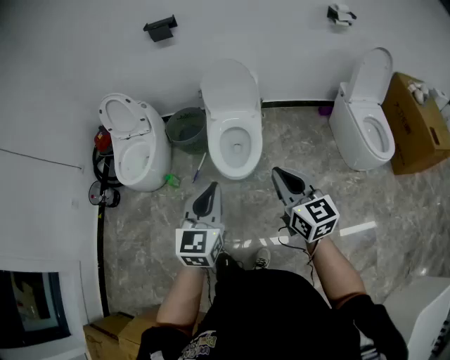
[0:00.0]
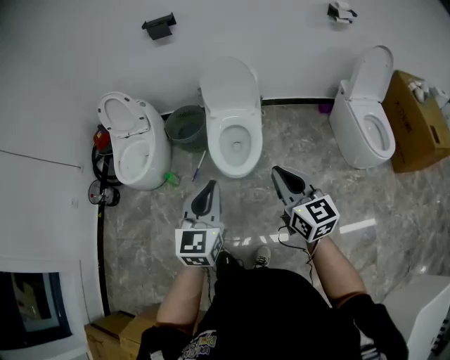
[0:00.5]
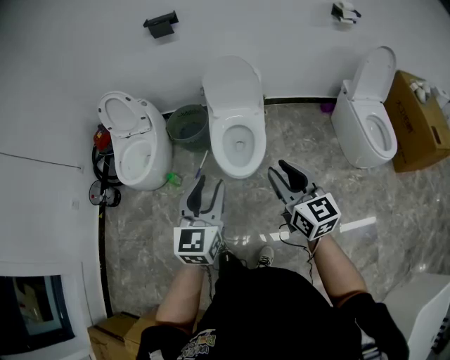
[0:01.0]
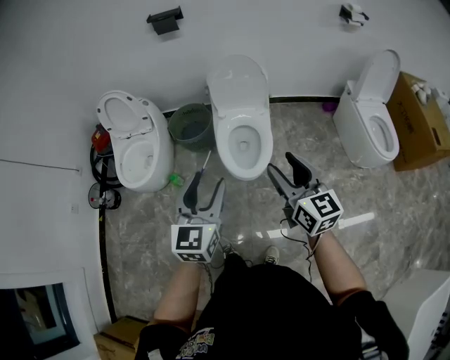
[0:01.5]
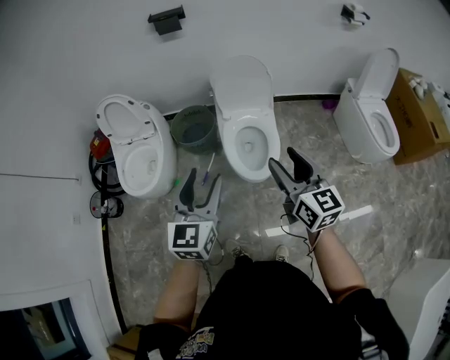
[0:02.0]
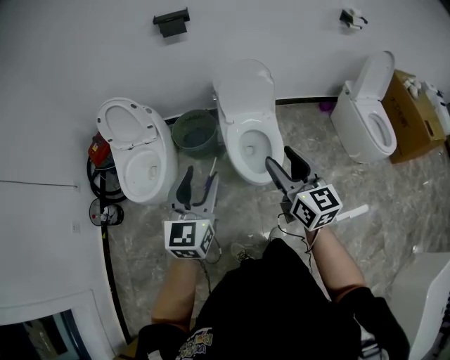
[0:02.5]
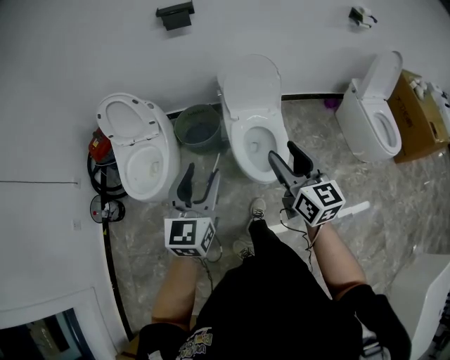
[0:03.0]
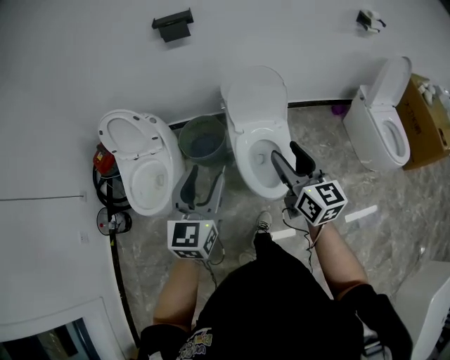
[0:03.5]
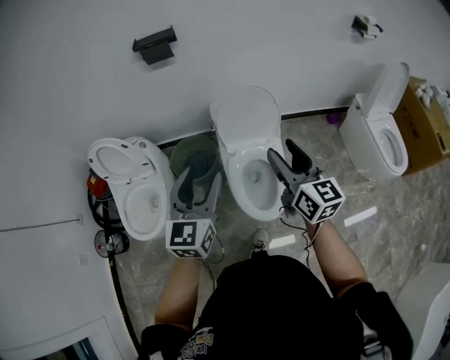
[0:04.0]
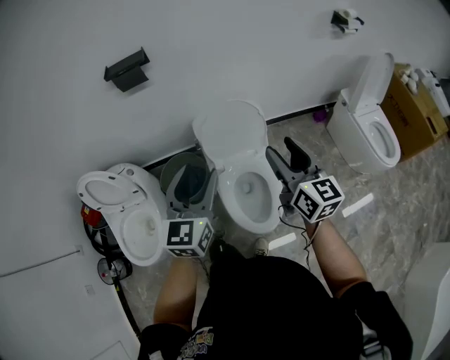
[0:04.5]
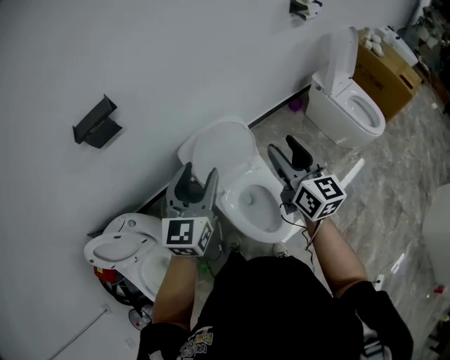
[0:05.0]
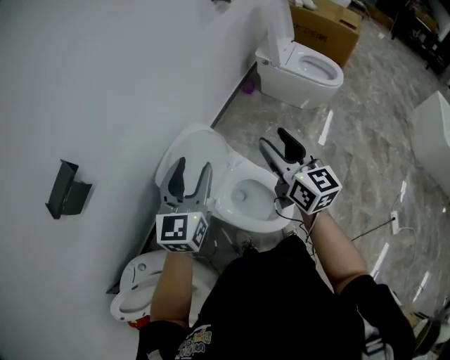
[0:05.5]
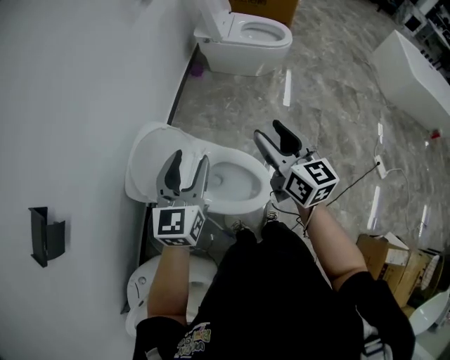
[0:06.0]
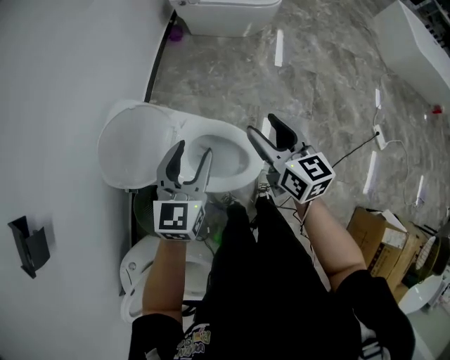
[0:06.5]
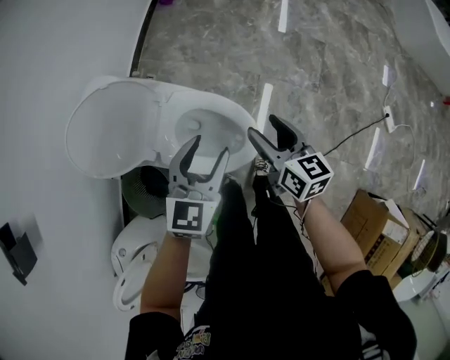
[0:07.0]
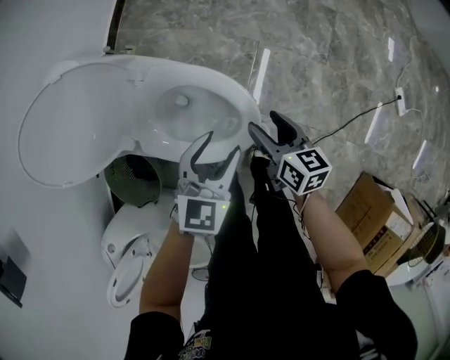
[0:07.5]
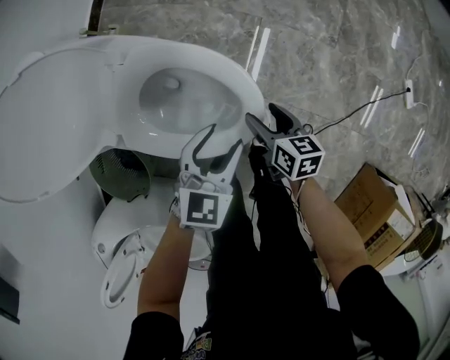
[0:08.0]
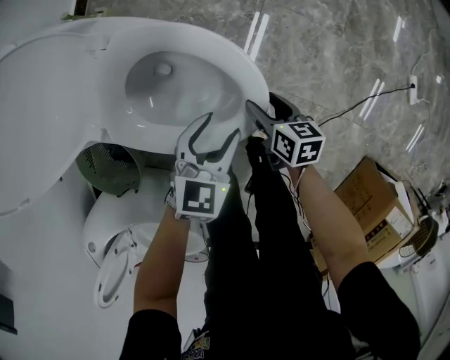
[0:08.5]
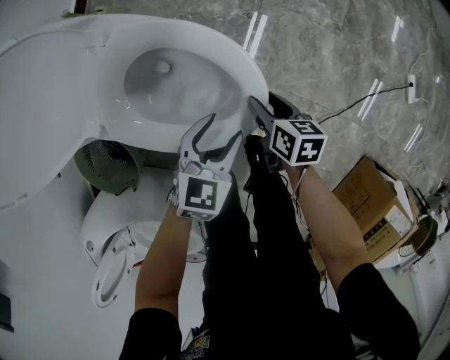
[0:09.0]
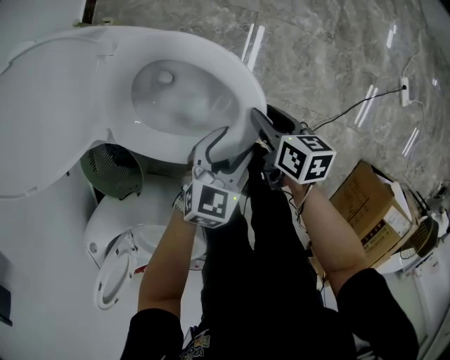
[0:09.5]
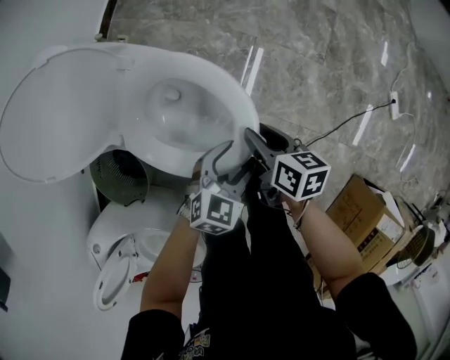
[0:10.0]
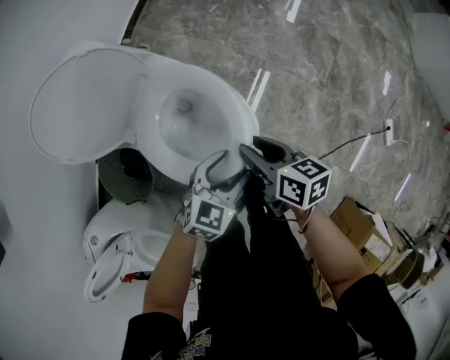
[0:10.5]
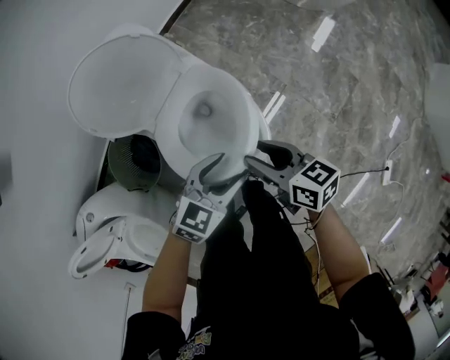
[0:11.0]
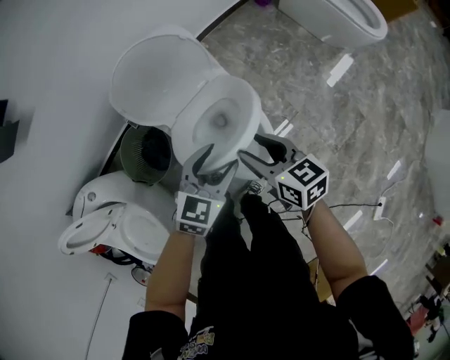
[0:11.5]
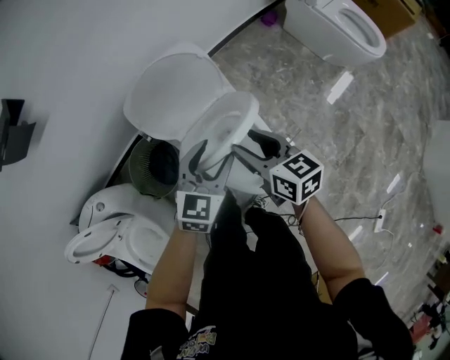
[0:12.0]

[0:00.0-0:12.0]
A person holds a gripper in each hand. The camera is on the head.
0:00.0 to 0:02.0: The grippers both shift to the left and forward by about 20 cm. The right gripper opens up; the left gripper opens.
0:02.0 to 0:04.0: Both grippers travel together forward, approximately 25 cm.
0:04.0 to 0:06.0: The right gripper ends up some 15 cm from where it was, and changes its angle by approximately 60 degrees. Meanwhile the left gripper shifts by about 30 cm, and changes its angle by roughly 60 degrees.
0:06.0 to 0:08.0: The left gripper travels downward and to the right by some 50 cm, and rotates some 40 degrees. The right gripper is displaced downward by roughly 60 cm, and points its fingers some 40 degrees further downward.
0:08.0 to 0:10.0: The left gripper moves backward, roughly 5 cm, and reaches about 5 cm downward, then returns; the right gripper moves upward, roughly 10 cm, and closes up.
0:10.0 to 0:12.0: The right gripper heads upward, covering some 25 cm, and swivels about 50 degrees, while the left gripper ends up approximately 35 cm from where it was, and changes its angle by roughly 50 degrees.

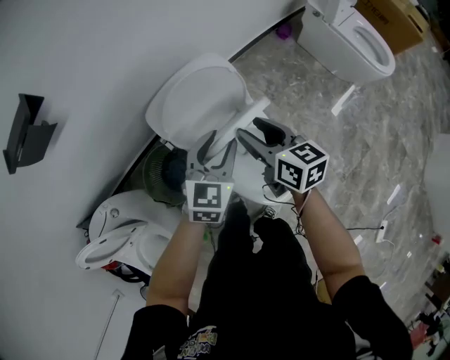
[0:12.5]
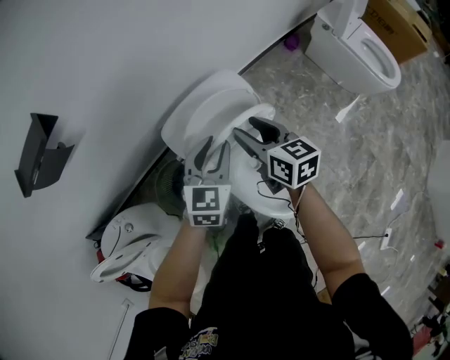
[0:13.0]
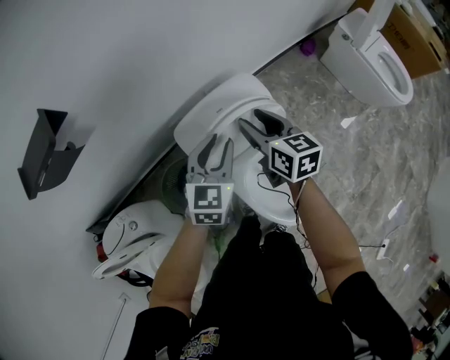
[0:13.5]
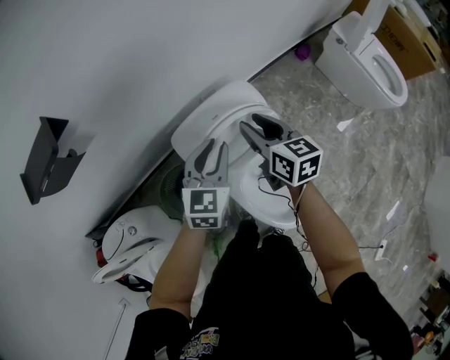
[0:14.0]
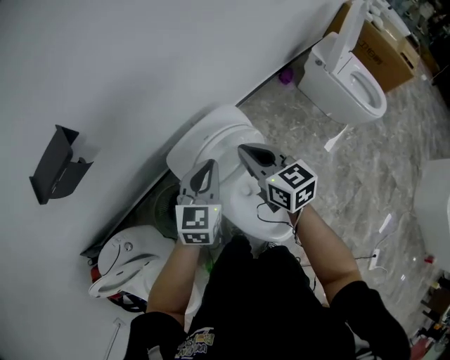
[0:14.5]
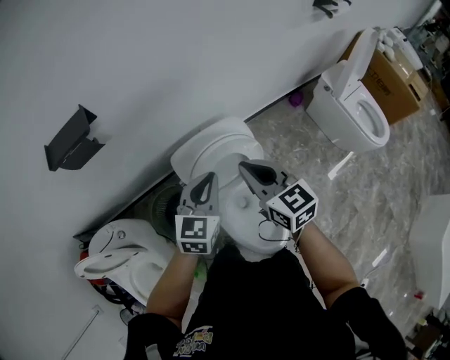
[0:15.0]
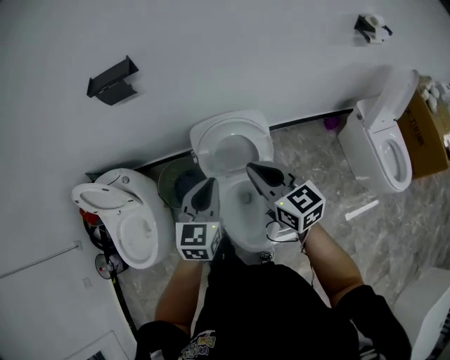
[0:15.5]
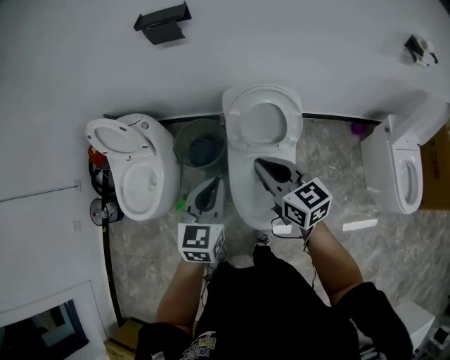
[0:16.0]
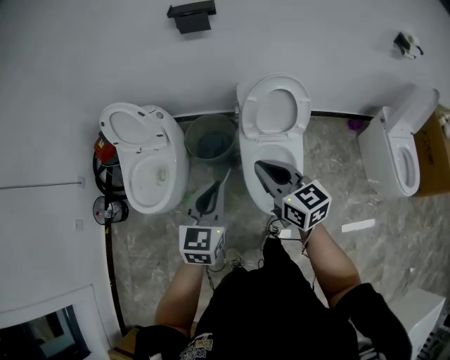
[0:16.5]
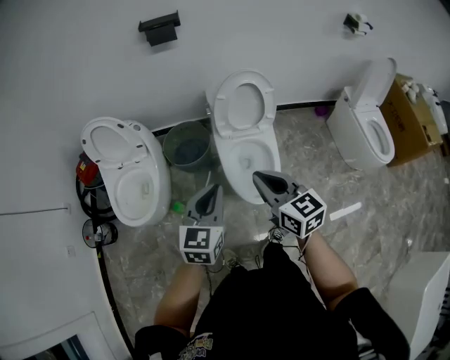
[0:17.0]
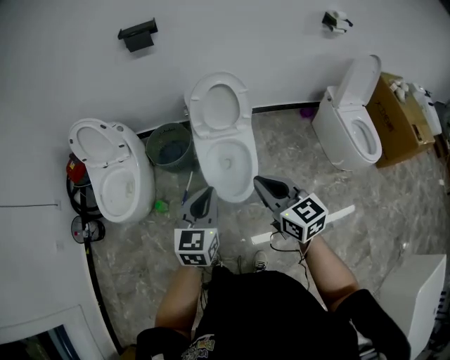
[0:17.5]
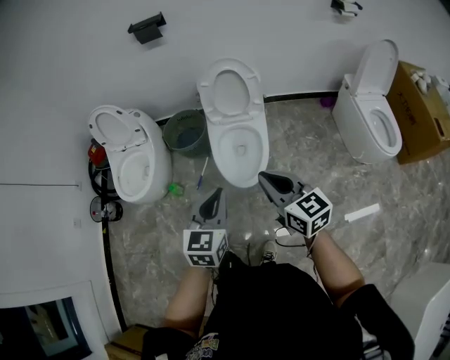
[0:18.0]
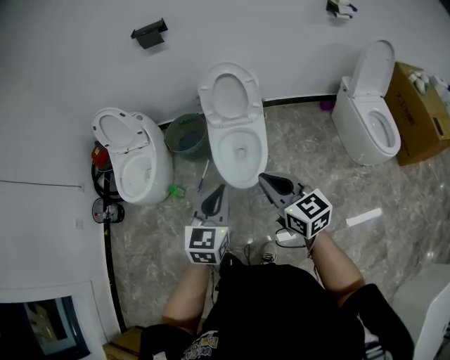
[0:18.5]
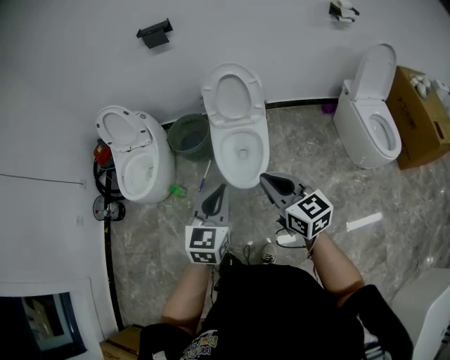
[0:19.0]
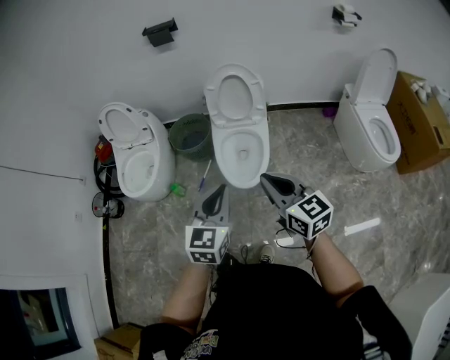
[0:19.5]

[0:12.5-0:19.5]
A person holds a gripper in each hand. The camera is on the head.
0:12.5 to 0:14.5: The right gripper moves forward, upward and to the left, roughly 15 cm, and closes its fingers. The left gripper goes some 15 cm forward, to the left and upward, and closes its fingers.
0:14.5 to 0:16.0: The left gripper changes place by about 30 cm, and swivels approximately 40 degrees; the right gripper changes place by roughly 25 cm, and changes its angle by roughly 40 degrees.
0:16.0 to 0:17.5: The grippers both shift backward by approximately 30 cm.
0:17.5 to 0:19.5: Both grippers travel together backward, some 15 cm.

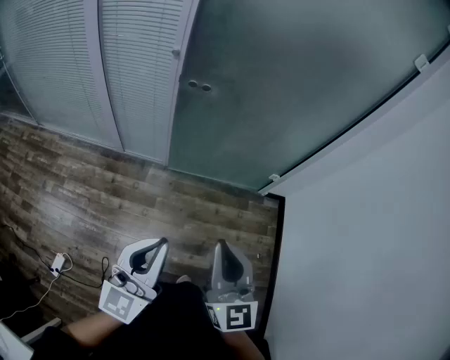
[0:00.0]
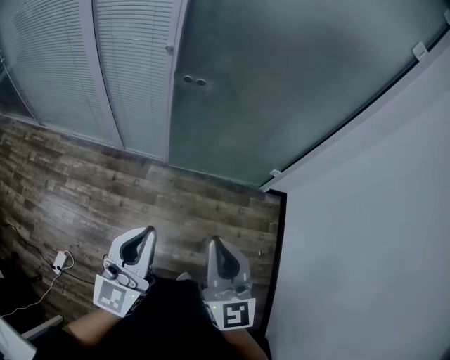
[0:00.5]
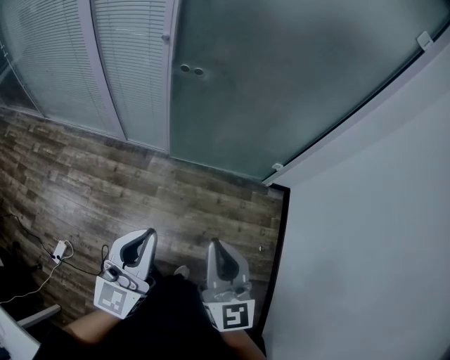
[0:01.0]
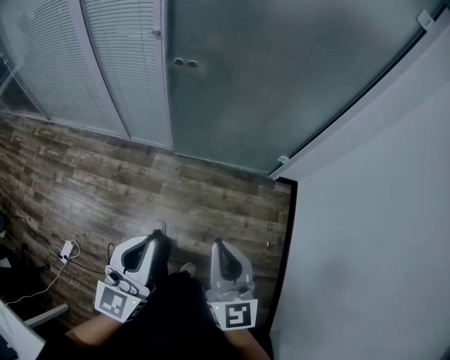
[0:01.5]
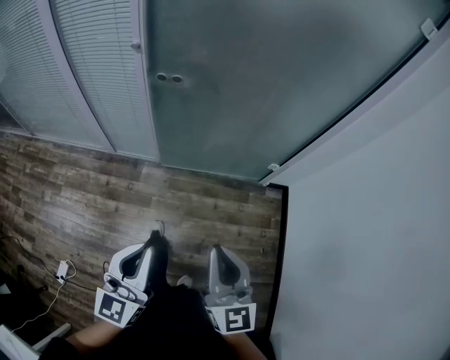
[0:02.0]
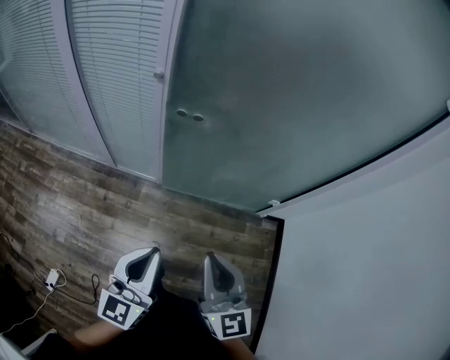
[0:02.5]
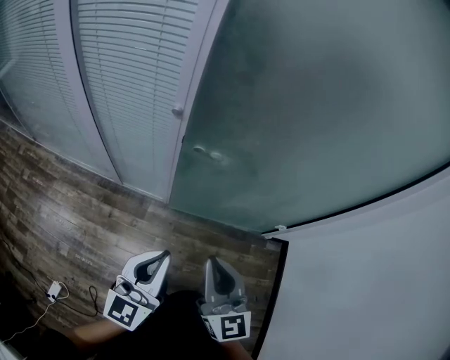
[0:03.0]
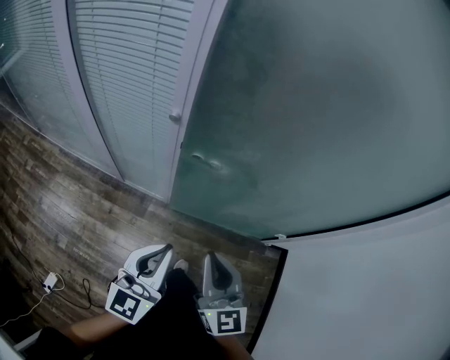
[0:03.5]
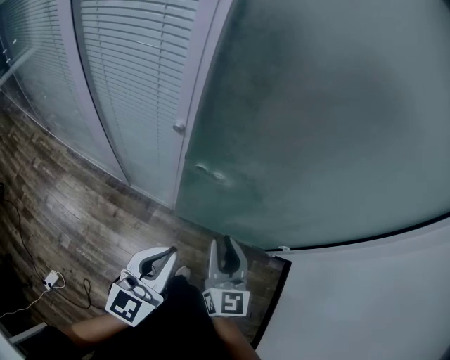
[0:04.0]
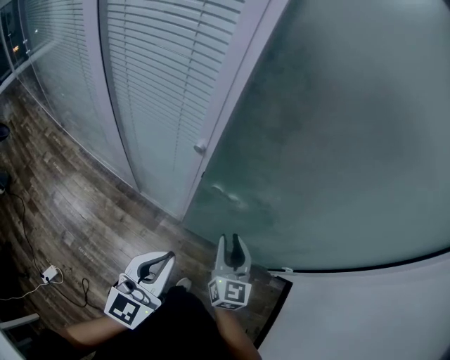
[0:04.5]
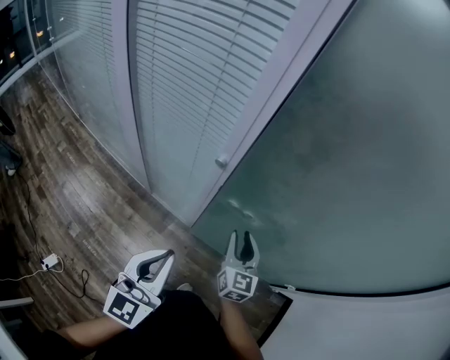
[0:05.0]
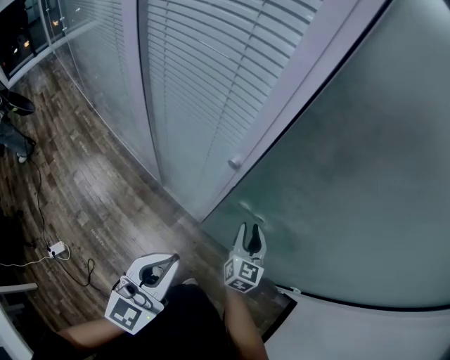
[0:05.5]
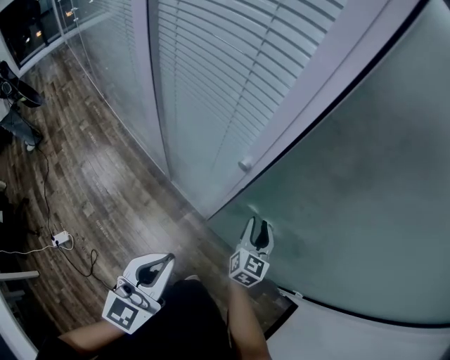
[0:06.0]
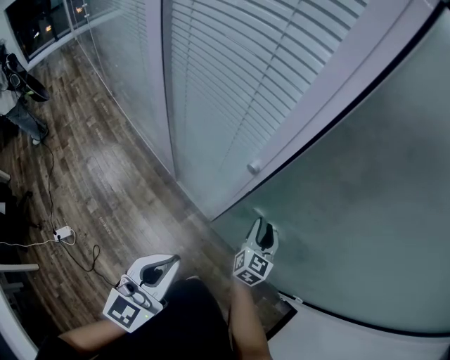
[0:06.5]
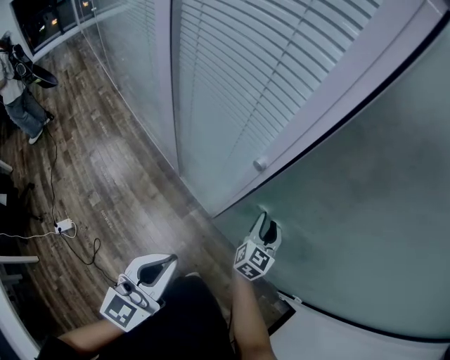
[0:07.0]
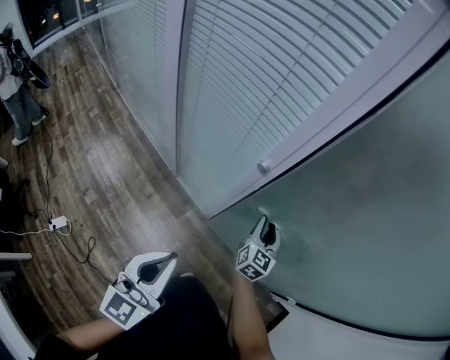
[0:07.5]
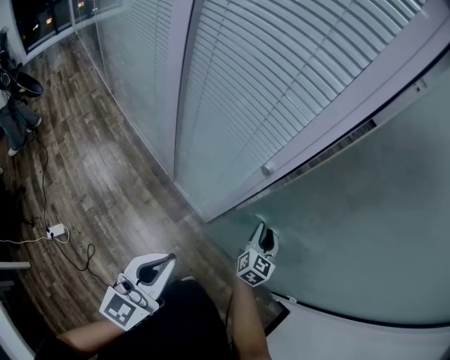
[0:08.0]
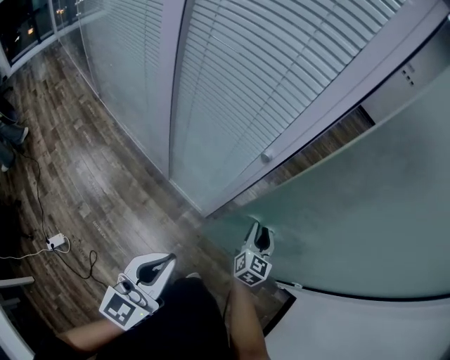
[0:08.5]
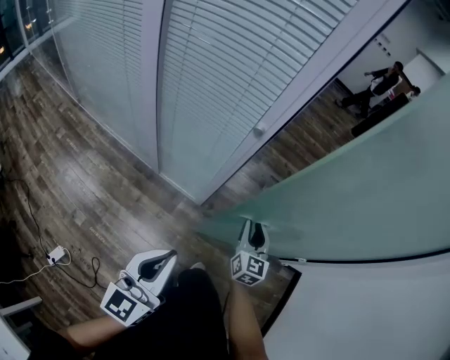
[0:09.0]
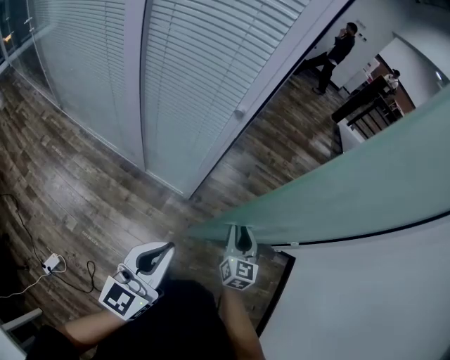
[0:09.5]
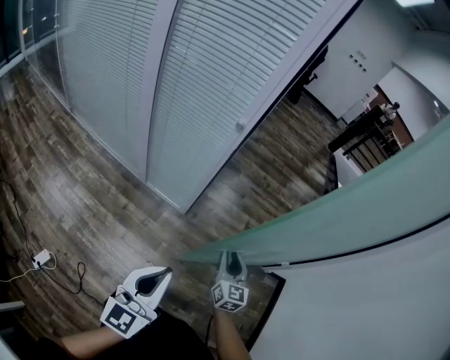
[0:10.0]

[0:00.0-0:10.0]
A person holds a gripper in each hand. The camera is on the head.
0:00.0 to 0:02.0: The left gripper moves forward and to the right, about 5 cm; the right gripper moves to the right and downward, approximately 10 cm.
0:02.0 to 0:04.0: Both grippers move forward, approximately 30 cm. The right gripper opens up.
0:04.0 to 0:06.0: The left gripper shifts about 10 cm to the left, and swivels about 20 degrees, while the right gripper shifts some 25 cm forward and downward.
0:06.0 to 0:08.0: The left gripper moves roughly 5 cm.
0:08.0 to 0:10.0: The left gripper goes roughly 15 cm backward. Meanwhile the right gripper goes some 25 cm backward.
